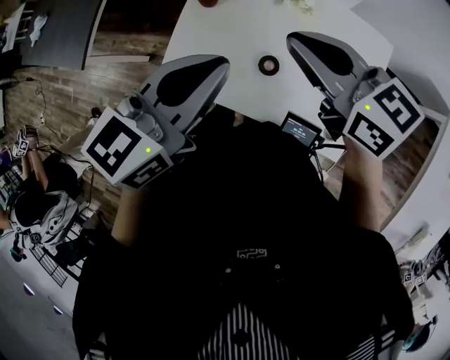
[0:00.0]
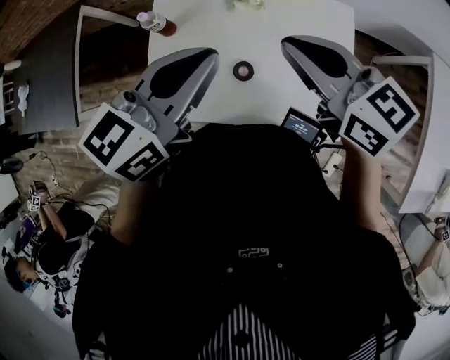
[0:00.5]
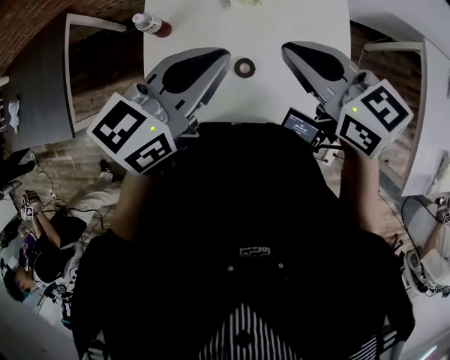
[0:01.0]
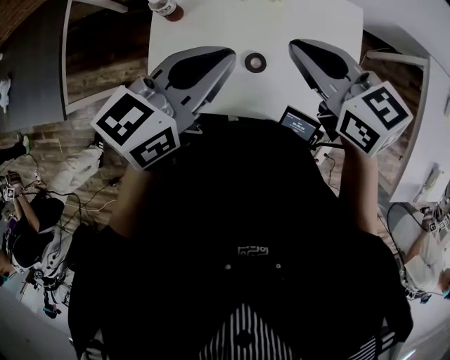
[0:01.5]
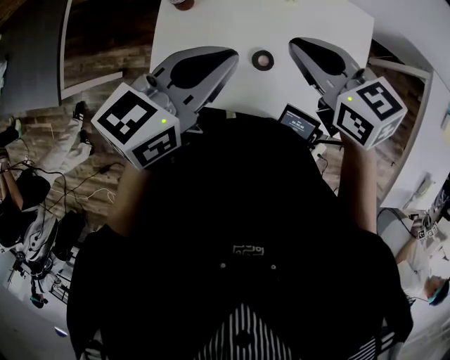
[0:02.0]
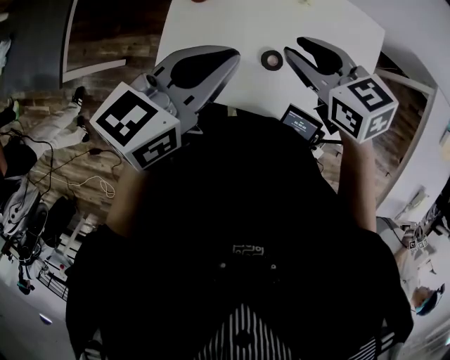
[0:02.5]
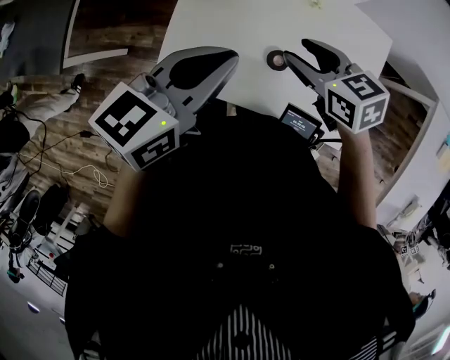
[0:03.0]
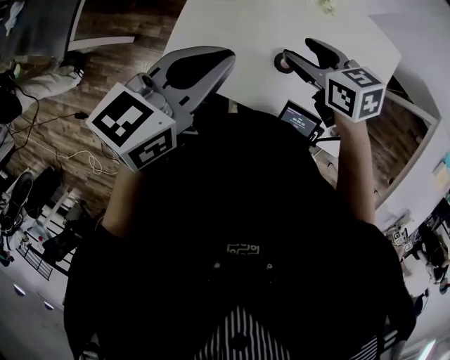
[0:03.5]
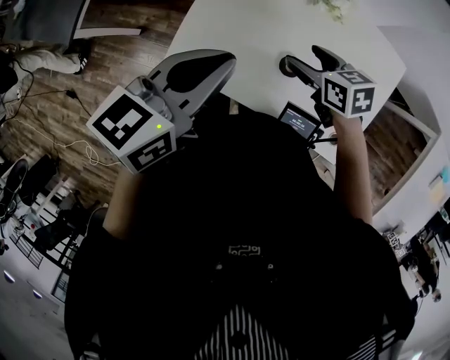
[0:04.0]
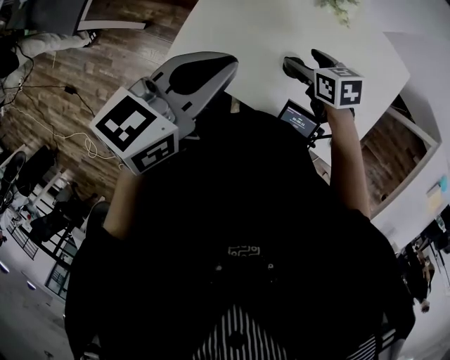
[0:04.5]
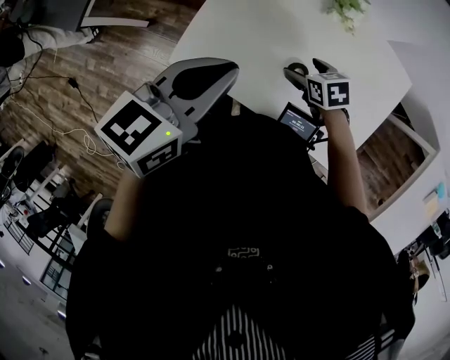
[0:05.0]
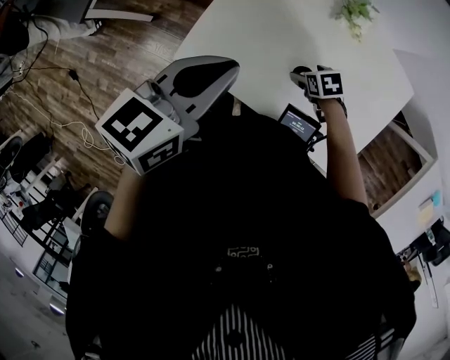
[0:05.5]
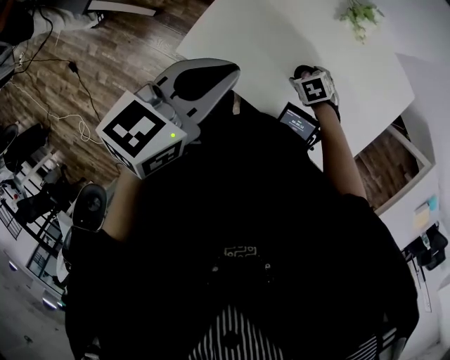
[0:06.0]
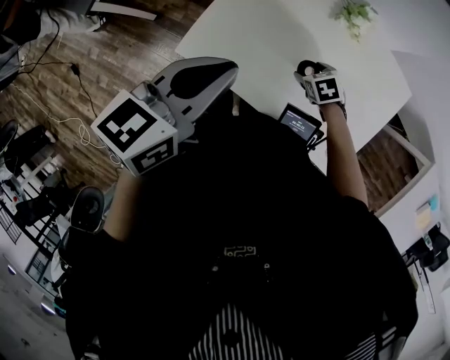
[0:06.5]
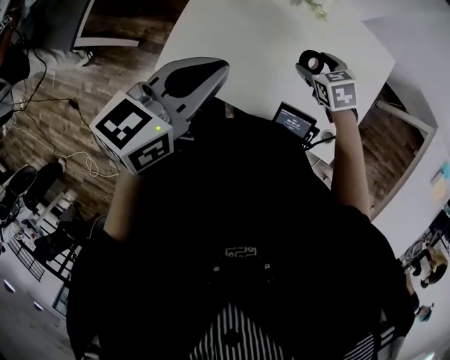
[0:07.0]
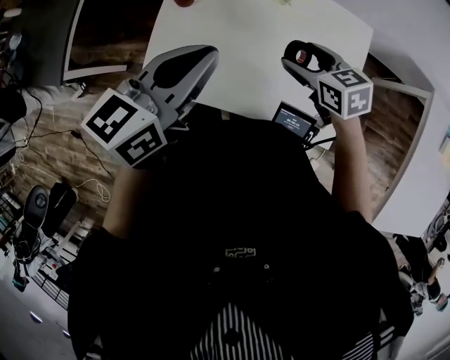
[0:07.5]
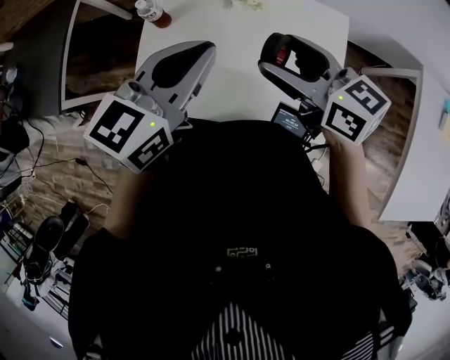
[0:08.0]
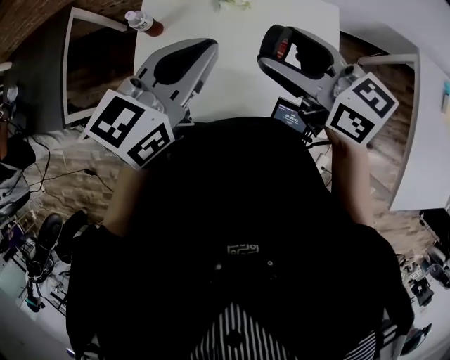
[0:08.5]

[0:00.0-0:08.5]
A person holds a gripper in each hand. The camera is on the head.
0:00.0 to 0:02.0: The grippers stay close to where they were, moving slightly.
0:02.0 to 0:04.0: The right gripper is displaced downward by about 15 cm, and opens up. The left gripper shifts roughly 5 cm backward.
0:04.0 to 0:06.5: The left gripper changes place by about 5 cm. Meanwhile the right gripper is displaced downward by roughly 15 cm, and rotates approximately 30 degrees.
0:06.5 to 0:08.5: The right gripper travels upward and to the right by approximately 40 cm, and tips its fingers upward by approximately 60 degrees. The left gripper goes about 25 cm to the right, and rotates roughly 20 degrees.

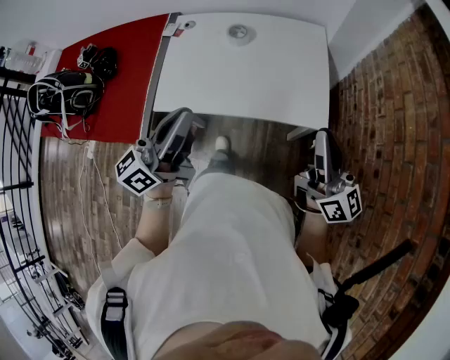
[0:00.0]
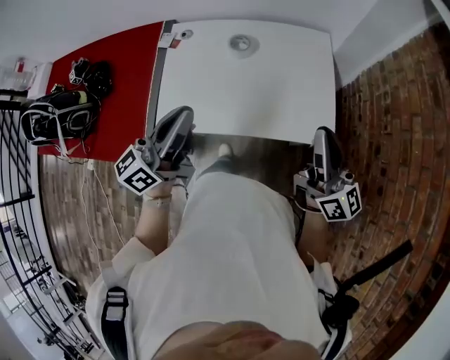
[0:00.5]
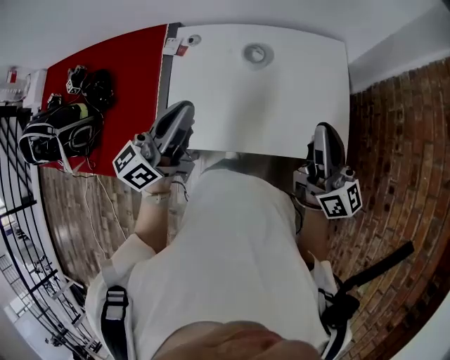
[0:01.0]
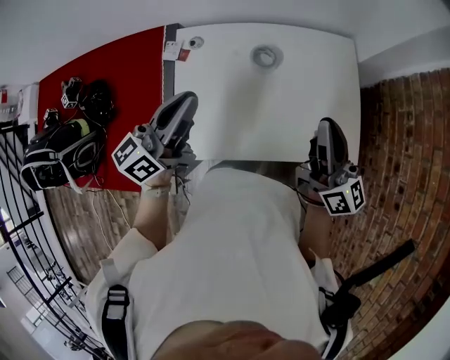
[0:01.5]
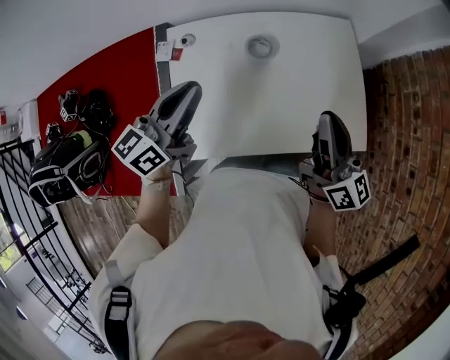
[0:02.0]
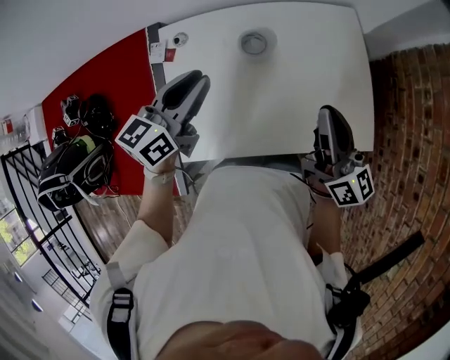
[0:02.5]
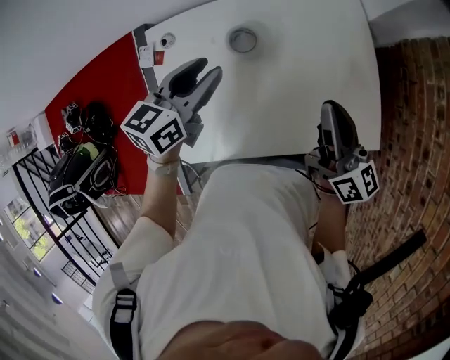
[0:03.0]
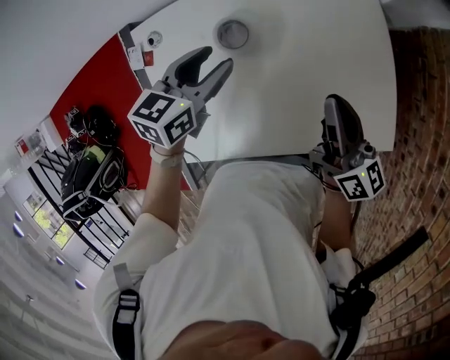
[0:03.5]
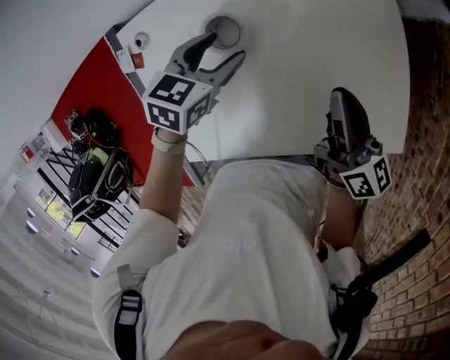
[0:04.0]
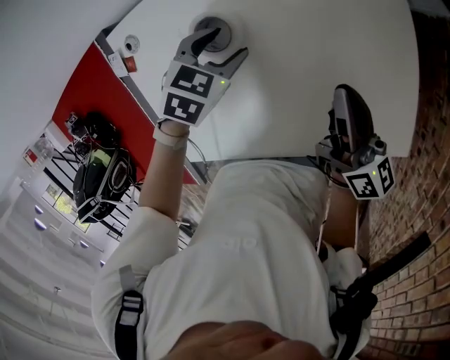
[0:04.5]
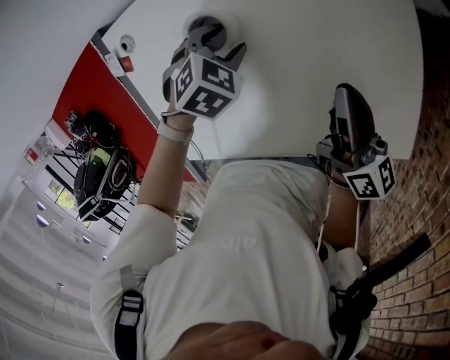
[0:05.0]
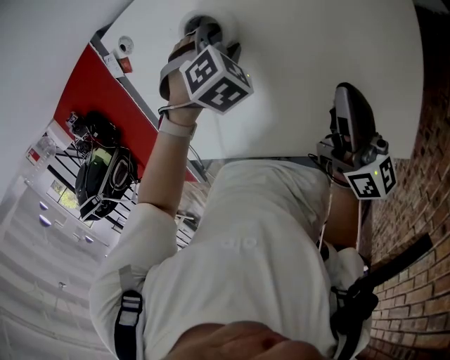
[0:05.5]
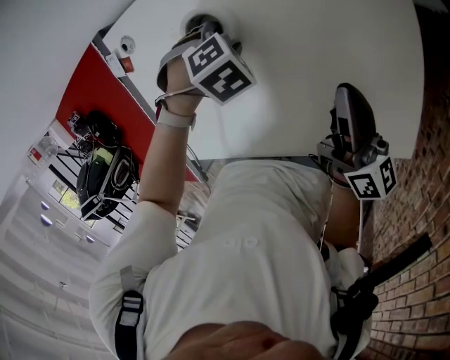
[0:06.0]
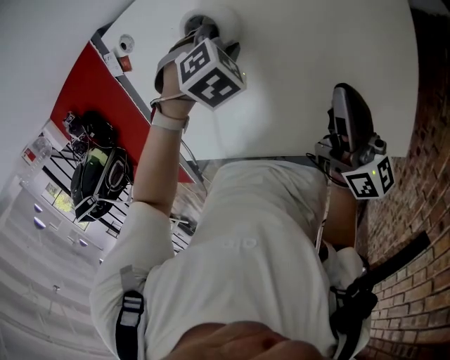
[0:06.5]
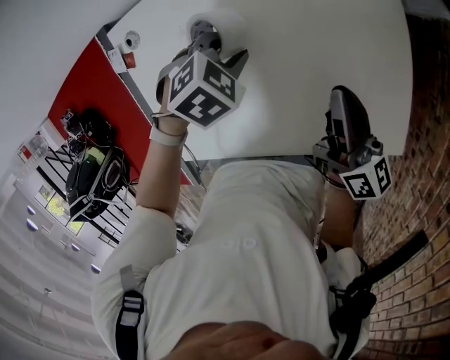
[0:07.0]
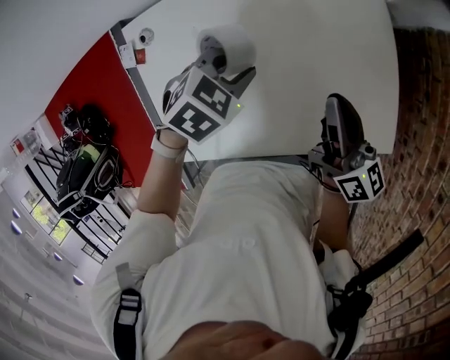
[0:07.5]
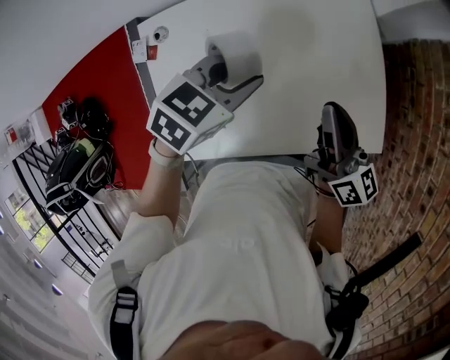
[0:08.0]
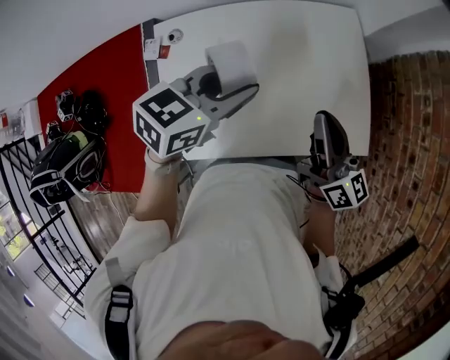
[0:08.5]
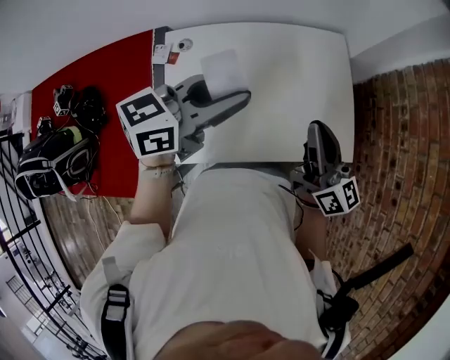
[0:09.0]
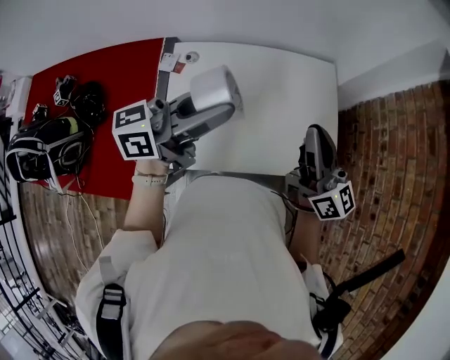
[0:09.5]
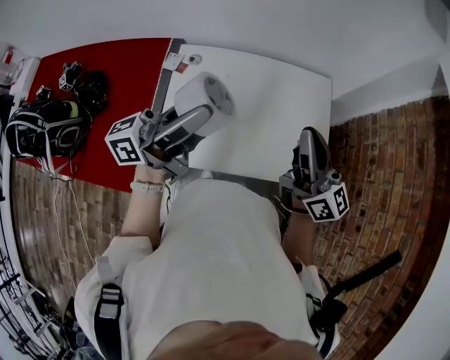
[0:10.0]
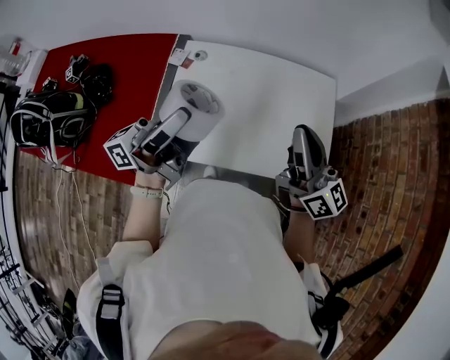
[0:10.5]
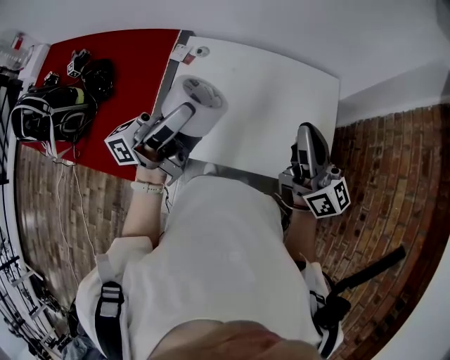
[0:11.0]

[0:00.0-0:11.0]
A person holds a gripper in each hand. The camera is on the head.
0:00.0 to 0:02.0: Both grippers travel together forward and to the left, some 35 cm. The left gripper turns by some 20 degrees.
0:02.0 to 0:03.5: The two grippers go approximately 25 cm downward, forward and to the right. The left gripper points its fingers roughly 30 degrees further downward, and opens.
0:03.5 to 0:05.5: The left gripper moves downward, approximately 20 cm, and points its fingers about 50 degrees further downward; the right gripper goes roughly 10 cm downward.
0:05.5 to 0:07.5: The right gripper heads upward, covering some 10 cm. Meanwhile the left gripper goes some 15 cm upward, and swivels some 30 degrees.
0:07.5 to 0:09.0: Both grippers travel together upward and backward, some 30 cm. The left gripper angles its fingers upward, by approximately 60 degrees, while the right gripper changes its angle by some 20 degrees.
0:09.0 to 0:11.0: The right gripper is displaced upward by approximately 10 cm. Meanwhile the left gripper is displaced backward, upward and to the left by some 20 cm, and angles its fingers upward, by some 50 degrees.

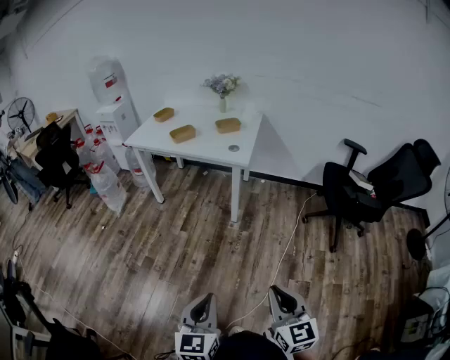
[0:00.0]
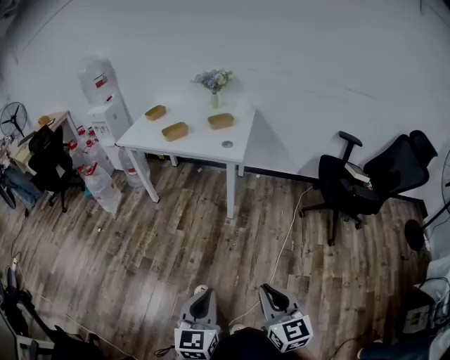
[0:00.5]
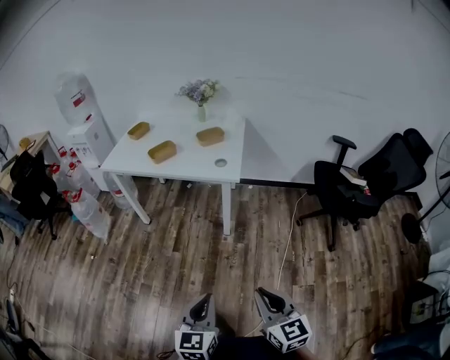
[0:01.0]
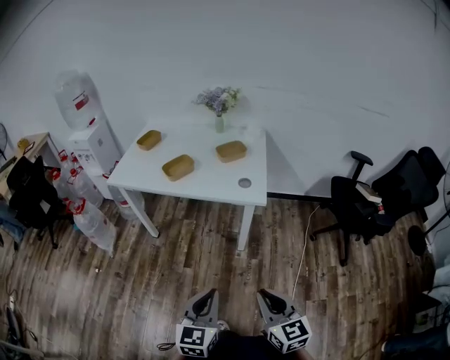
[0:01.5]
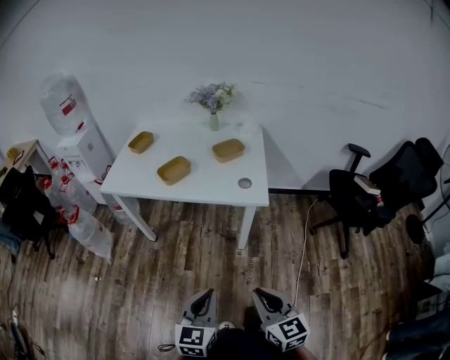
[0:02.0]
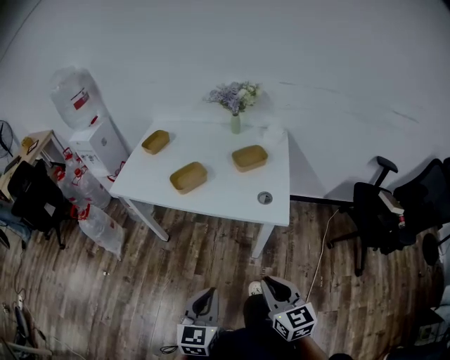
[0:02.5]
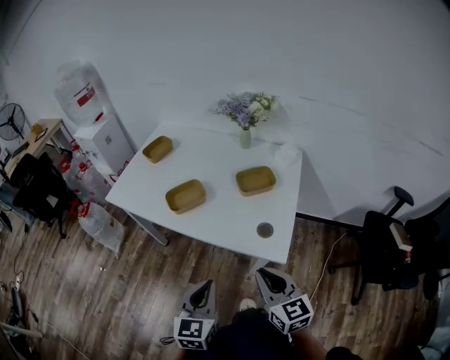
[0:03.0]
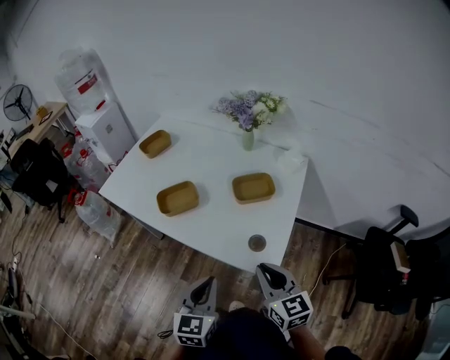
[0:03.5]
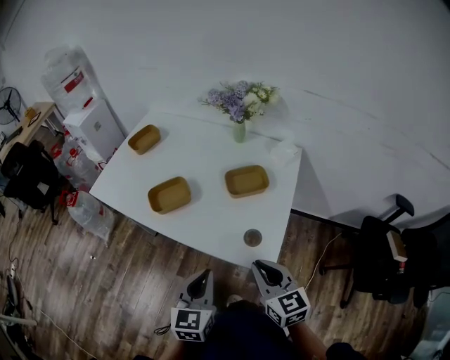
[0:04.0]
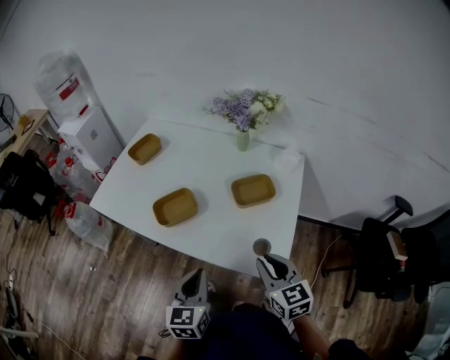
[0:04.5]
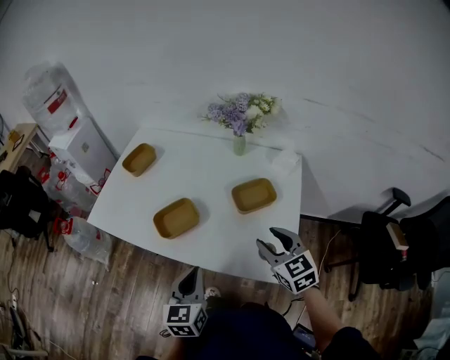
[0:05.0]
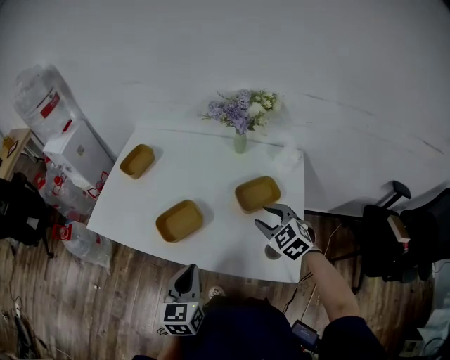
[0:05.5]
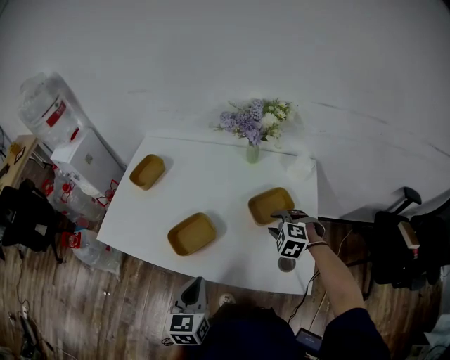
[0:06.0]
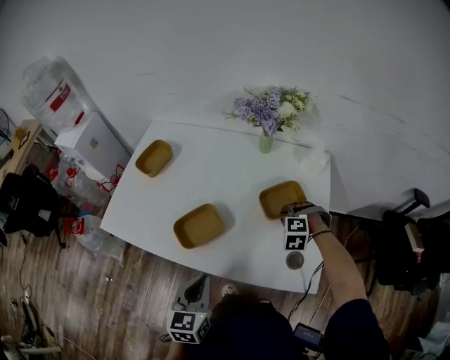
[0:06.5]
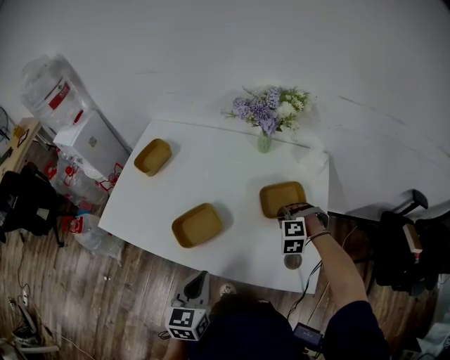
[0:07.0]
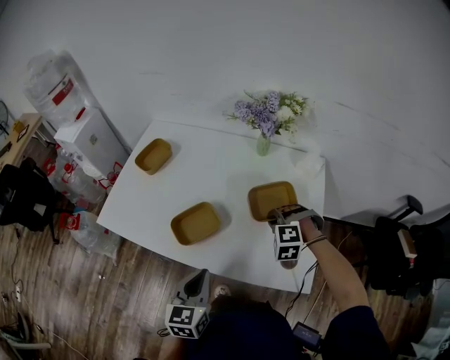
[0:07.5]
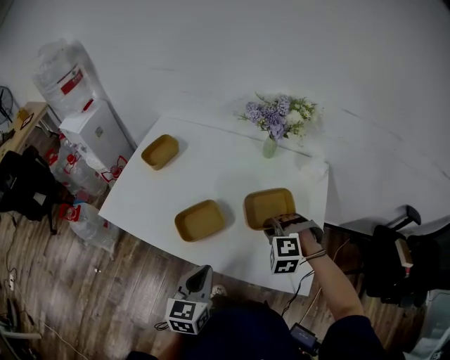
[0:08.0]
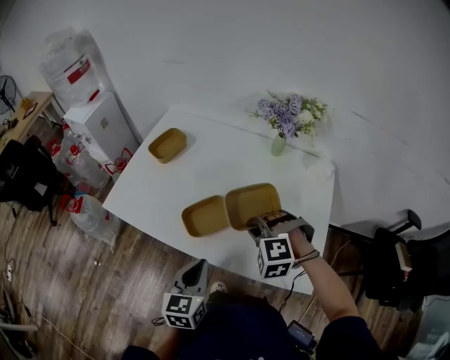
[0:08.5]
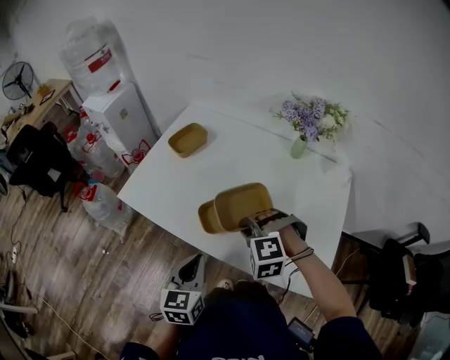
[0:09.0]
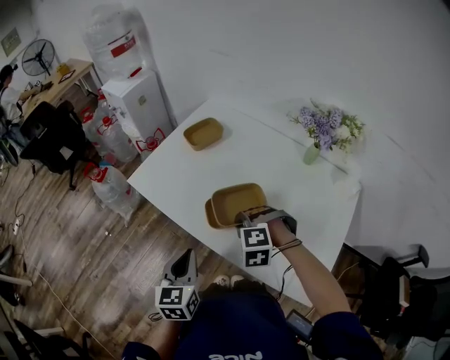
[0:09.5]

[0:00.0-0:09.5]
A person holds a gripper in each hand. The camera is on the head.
0:00.0 to 0:02.0: The pair of grippers is taken forward and to the left, about 40 cm.
0:02.0 to 0:04.0: The left gripper moves forward and to the right, roughly 40 cm. The right gripper goes about 40 cm forward.
0:04.0 to 0:05.5: The right gripper is displaced forward by about 25 cm, swivels about 40 degrees, and opens. Meanwhile the left gripper is displaced forward and to the left by approximately 20 cm.
0:05.5 to 0:07.5: The right gripper is displaced downward by about 5 cm, twists about 40 degrees counterclockwise, seen from behind, and closes up.
0:07.5 to 0:09.5: The left gripper shifts by about 10 cm, and turns by approximately 20 degrees; the right gripper ends up approximately 20 cm from where it was, and turns by about 20 degrees.
